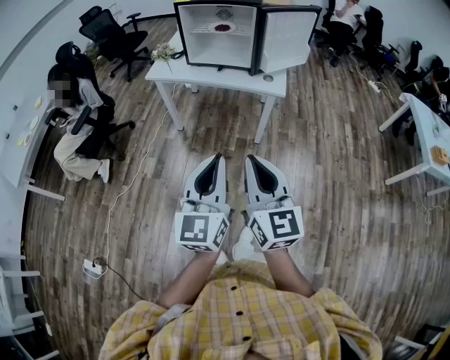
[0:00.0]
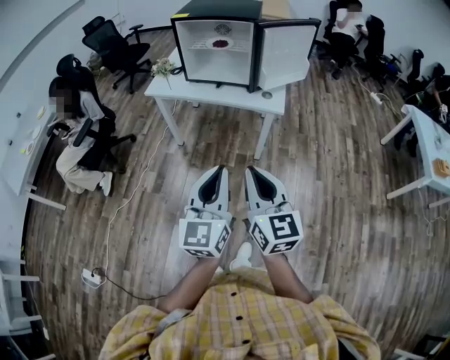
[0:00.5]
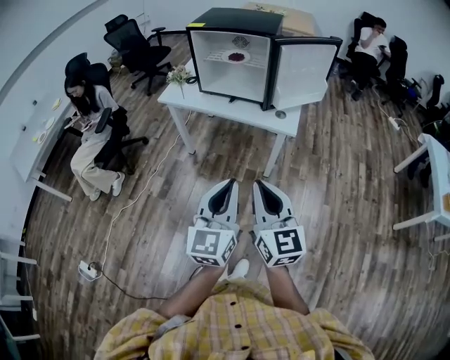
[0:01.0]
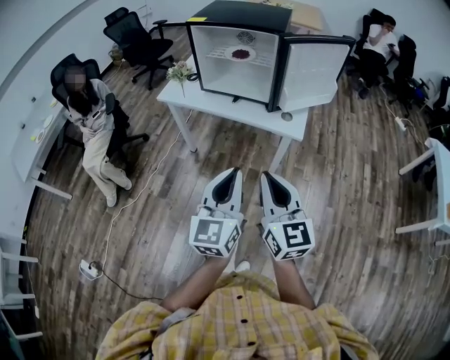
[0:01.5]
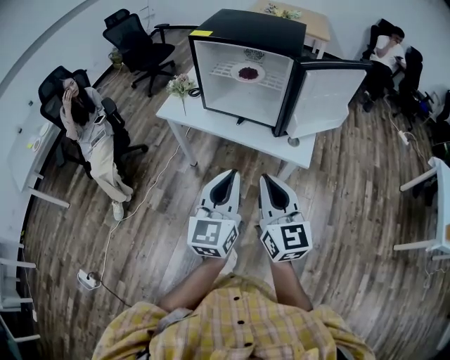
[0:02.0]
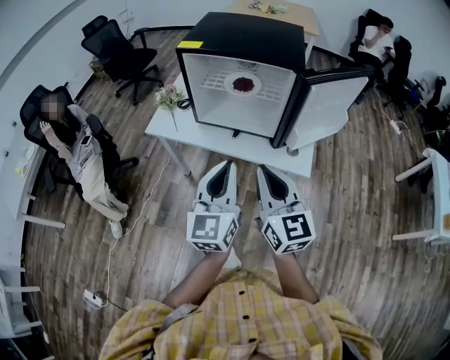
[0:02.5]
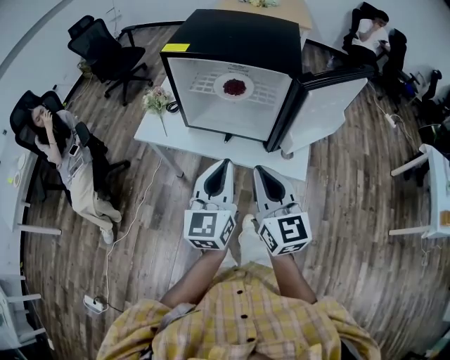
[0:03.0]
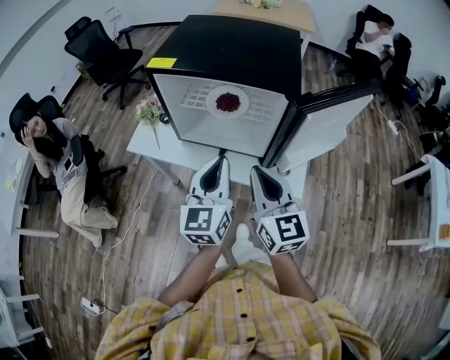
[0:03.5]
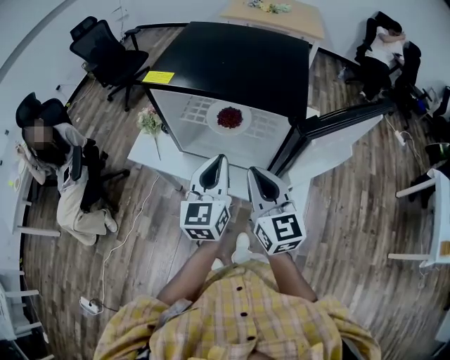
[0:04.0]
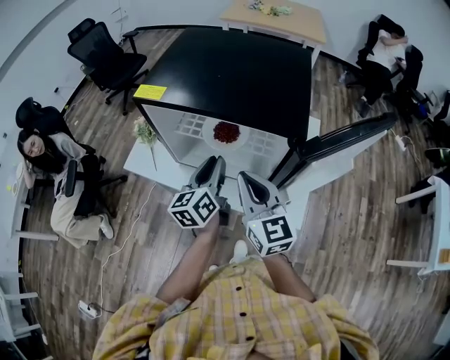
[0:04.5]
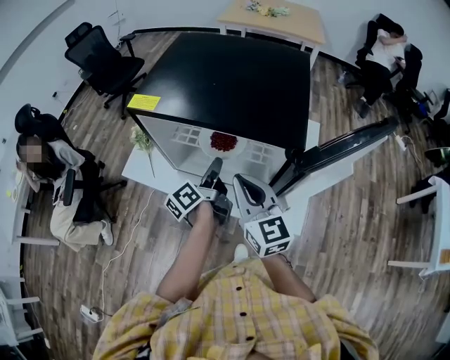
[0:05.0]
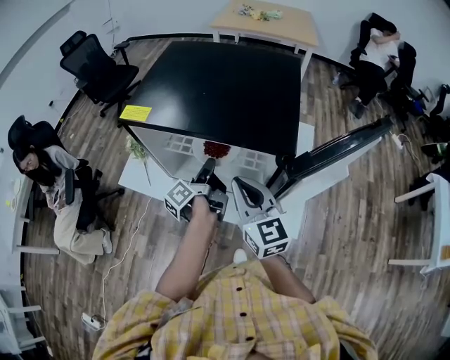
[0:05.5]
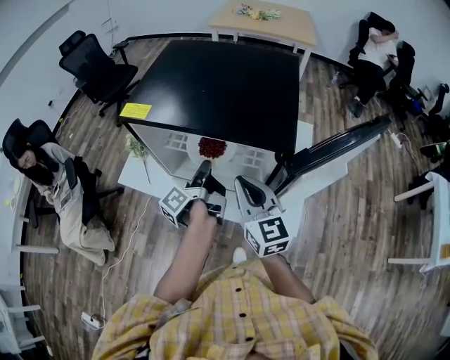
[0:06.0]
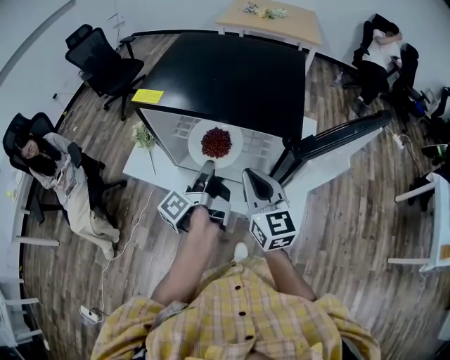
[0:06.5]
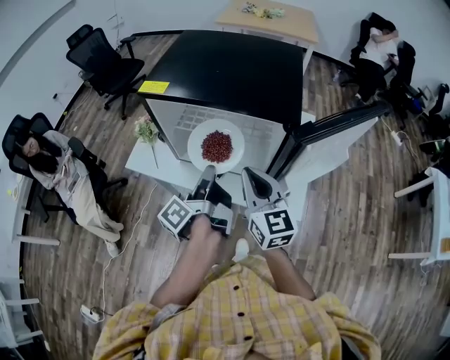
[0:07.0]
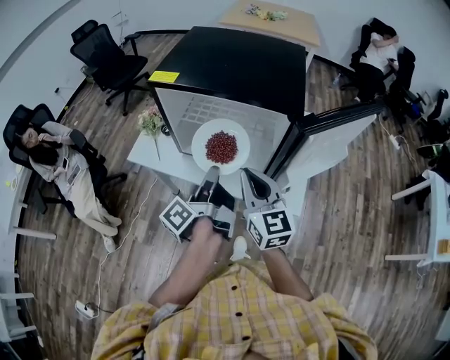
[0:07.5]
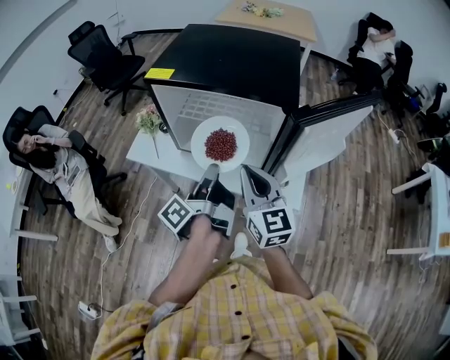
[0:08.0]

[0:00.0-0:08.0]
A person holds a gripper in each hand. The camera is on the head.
0:00.0 to 0:02.0: The grippers both shift forward by about 30 cm.
0:02.0 to 0:04.0: The grippers both shift forward by roughly 30 cm.
0:04.0 to 0:06.0: The left gripper is displaced forward and downward by some 15 cm, and twists roughly 80 degrees counterclockwise, seen from behind. Meanwhile the right gripper shifts about 5 cm forward.
0:06.0 to 0:08.0: The right gripper is displaced backward by roughly 10 cm, while the left gripper travels backward and upward by approximately 15 cm.

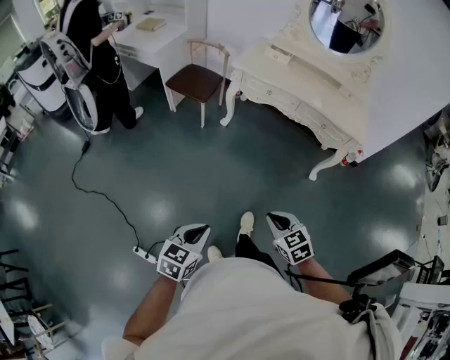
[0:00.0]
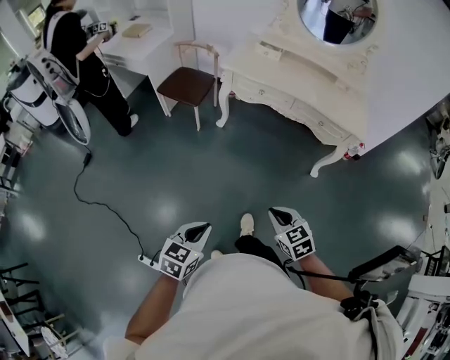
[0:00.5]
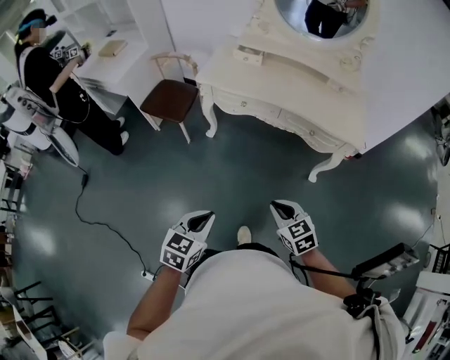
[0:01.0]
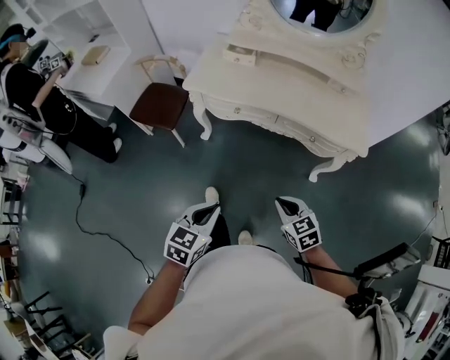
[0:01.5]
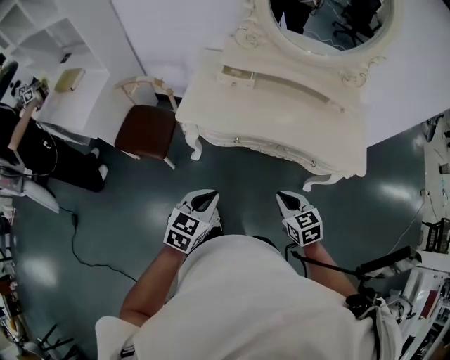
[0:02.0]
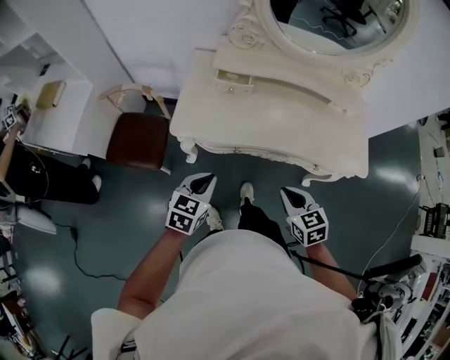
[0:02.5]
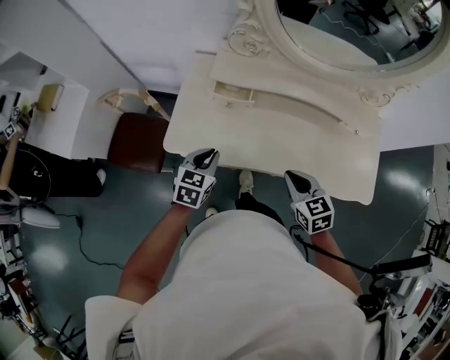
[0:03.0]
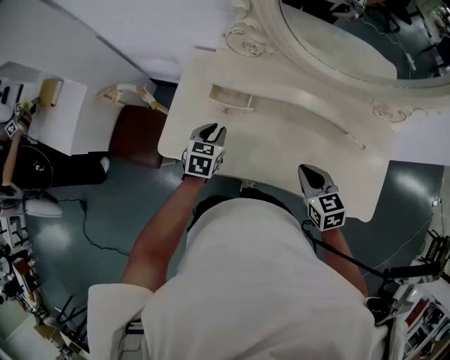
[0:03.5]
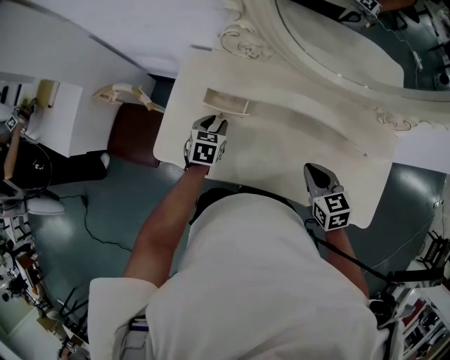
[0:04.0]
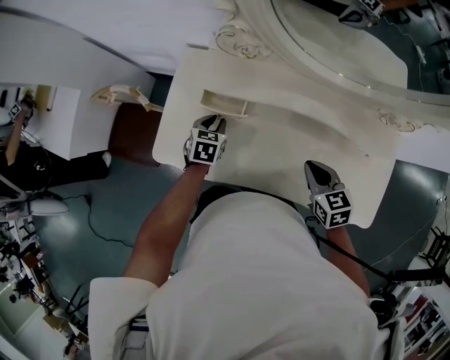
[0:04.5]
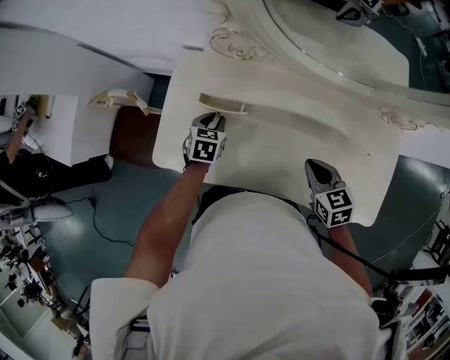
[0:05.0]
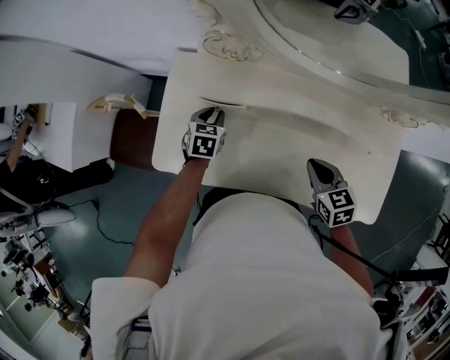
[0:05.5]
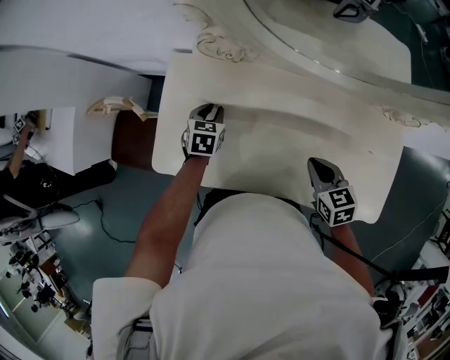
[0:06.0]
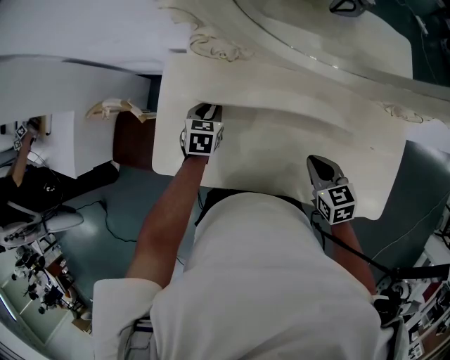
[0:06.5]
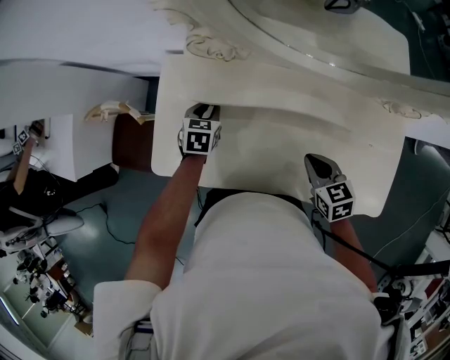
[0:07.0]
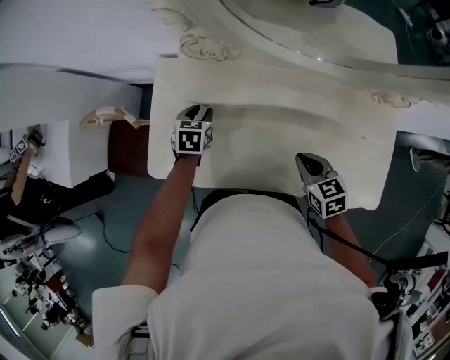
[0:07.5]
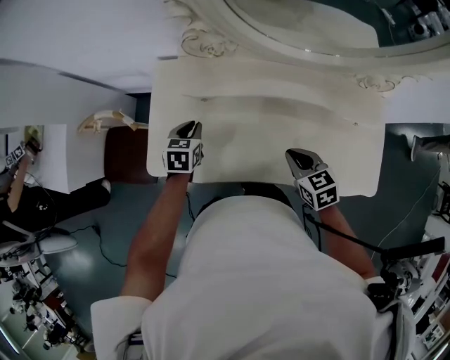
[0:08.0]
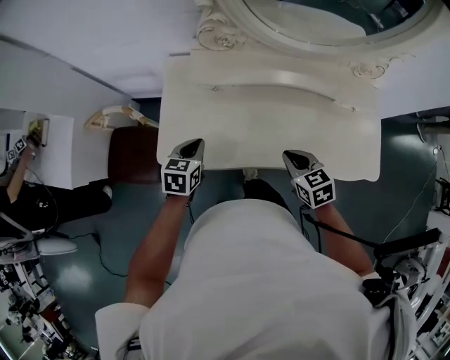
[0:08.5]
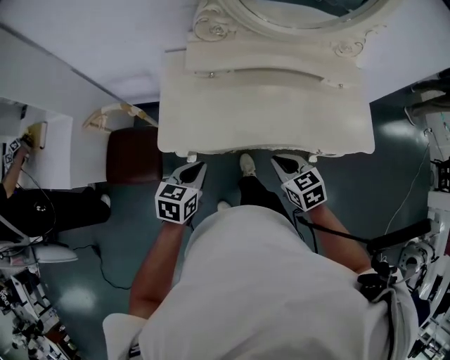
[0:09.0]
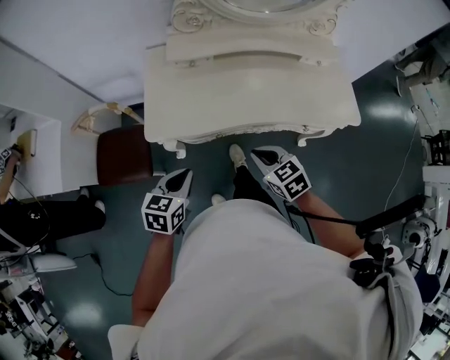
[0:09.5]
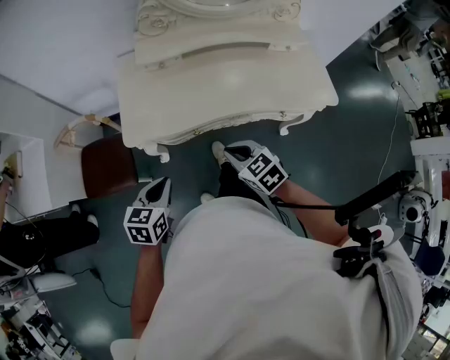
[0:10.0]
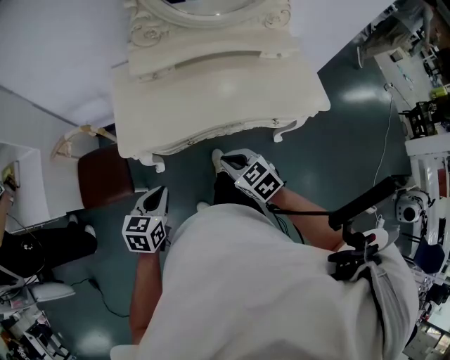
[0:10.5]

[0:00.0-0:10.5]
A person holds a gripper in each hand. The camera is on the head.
0:00.0 to 0:02.0: The pair of grippers is taken forward, approximately 60 cm. The right gripper swivels about 20 degrees.
0:02.0 to 0:04.0: The pair of grippers is taken forward, approximately 50 cm. The left gripper changes its angle by about 20 degrees, and opens its fingers.
0:04.0 to 0:06.5: The left gripper moves forward, about 10 cm. Meanwhile the right gripper ends up approximately 5 cm from where it was.
0:06.5 to 0:08.5: The right gripper shifts about 15 cm to the left and backward. The left gripper heads backward, to the left and upward, covering approximately 25 cm, and closes.
0:08.5 to 0:10.5: The right gripper heads backward and to the left, covering approximately 25 cm. Meanwhile the left gripper moves backward, some 30 cm.

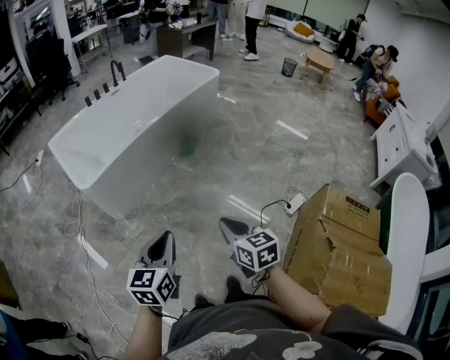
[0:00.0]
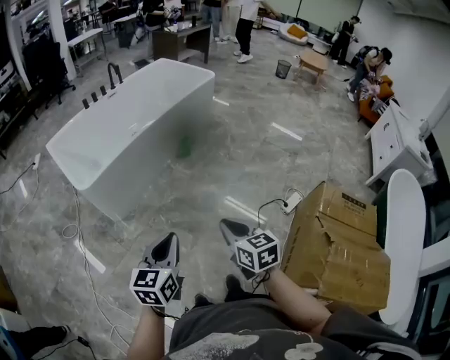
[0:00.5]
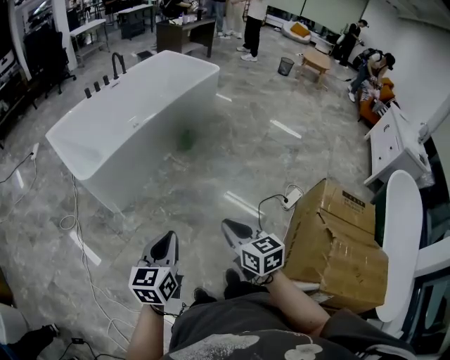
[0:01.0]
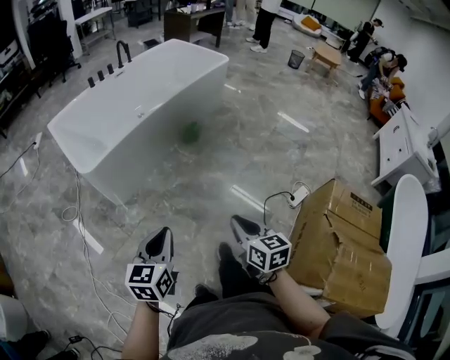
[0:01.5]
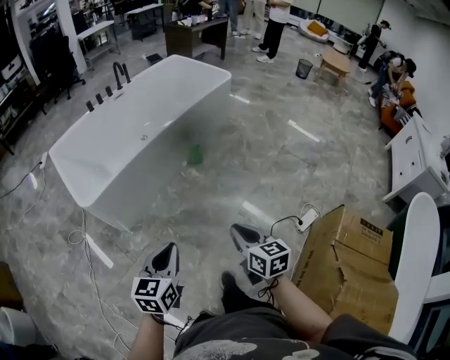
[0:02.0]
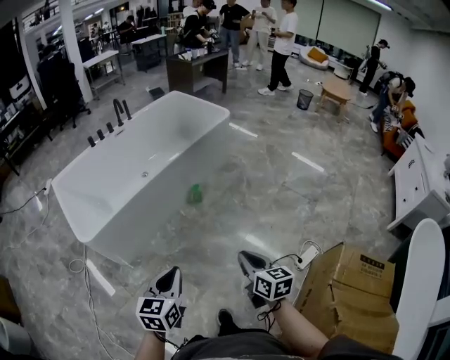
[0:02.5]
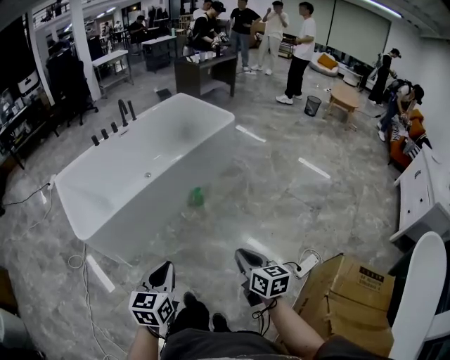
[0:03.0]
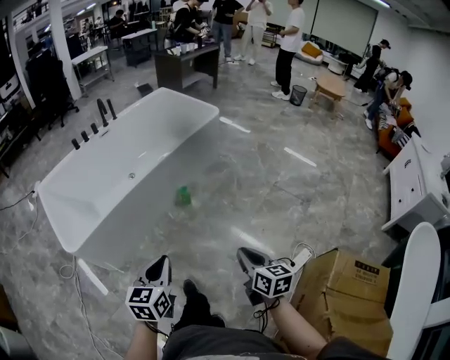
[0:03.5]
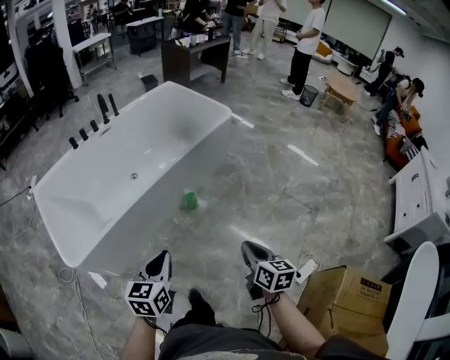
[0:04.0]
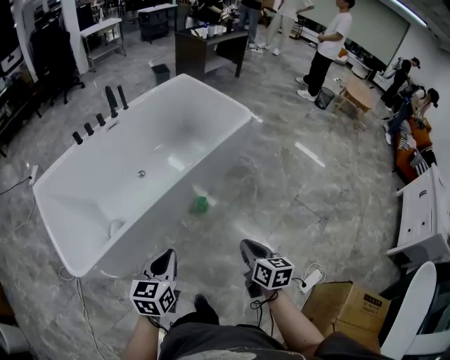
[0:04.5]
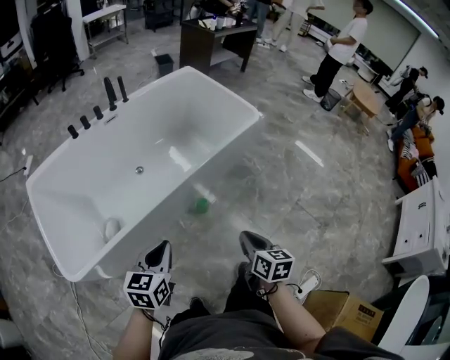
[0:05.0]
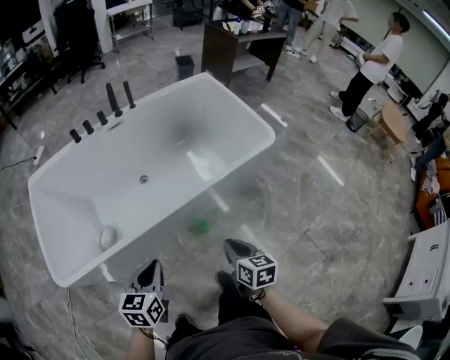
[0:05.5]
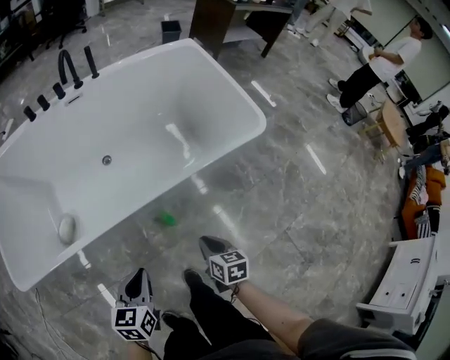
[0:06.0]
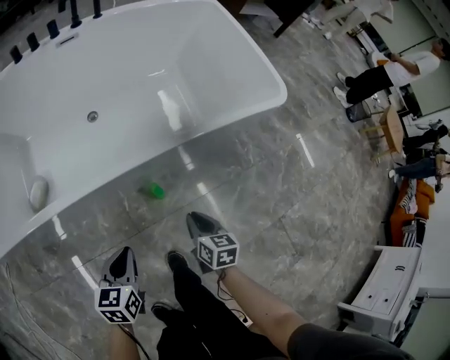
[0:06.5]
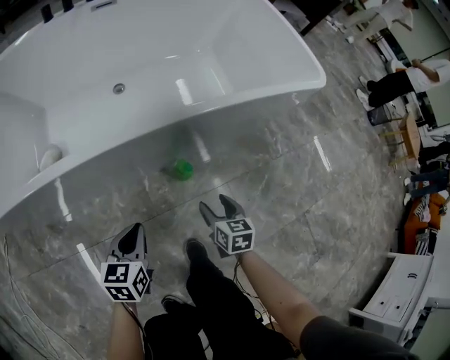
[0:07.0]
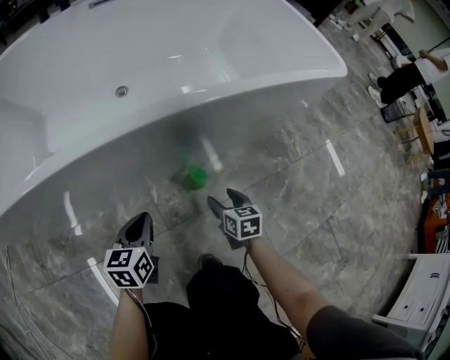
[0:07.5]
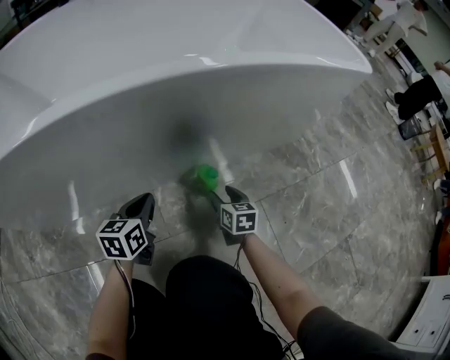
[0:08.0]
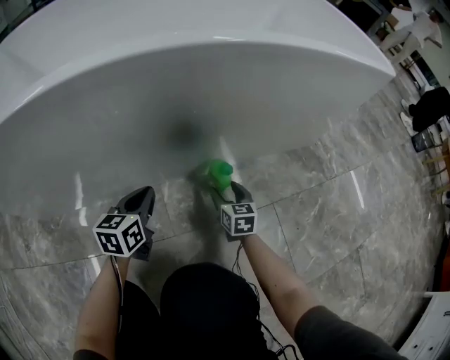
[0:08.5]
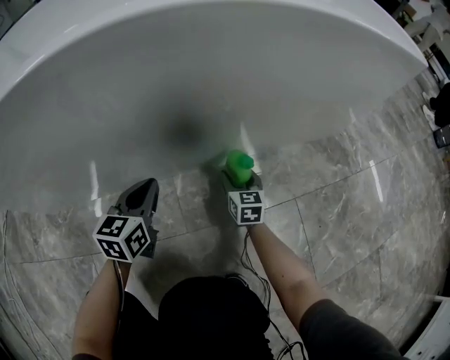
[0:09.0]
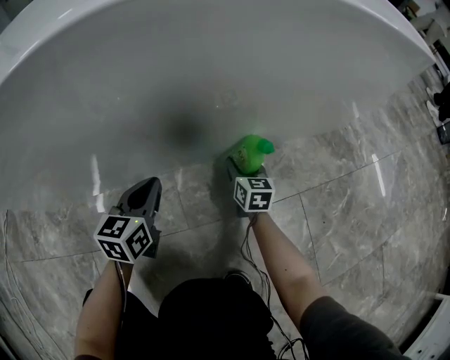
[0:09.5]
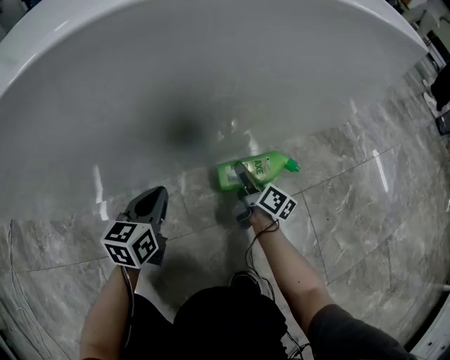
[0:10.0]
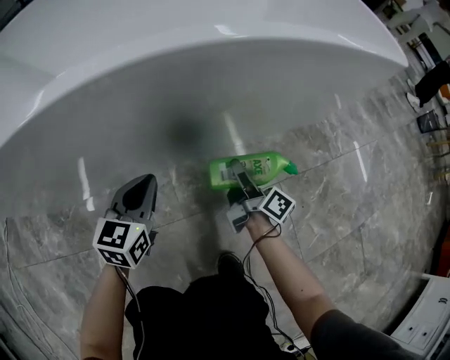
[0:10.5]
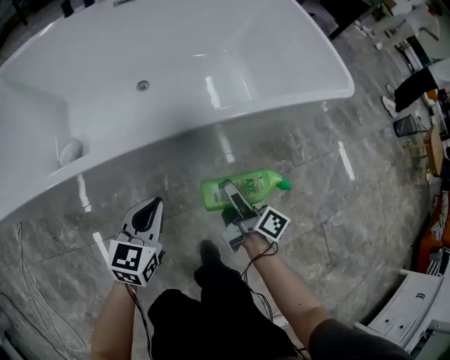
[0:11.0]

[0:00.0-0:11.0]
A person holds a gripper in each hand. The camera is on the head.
0:00.0 to 0:02.0: The grippers both shift forward by about 10 cm.
0:02.0 to 0:03.5: The left gripper goes some 20 cm forward and to the right. The right gripper shifts roughly 20 cm to the right and forward.
0:03.5 to 0:05.5: The pair of grippers is taken forward, about 50 cm. The right gripper swivels approximately 20 degrees. Meanwhile the left gripper swivels about 20 degrees.
0:05.5 to 0:07.5: The two grippers go some 50 cm downward. The right gripper opens.
0:07.5 to 0:09.0: Both grippers move downward and forward, approximately 20 cm.
0:09.0 to 0:11.0: Both grippers move upward, approximately 35 cm. The right gripper rotates around the line of its fingers by some 60 degrees, clockwise from behind.
